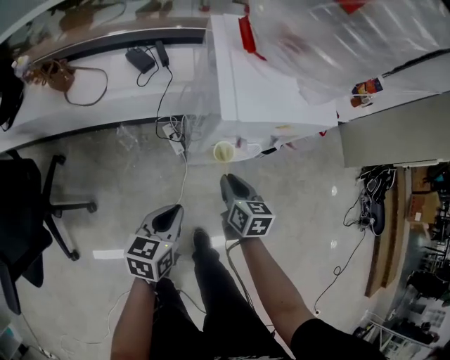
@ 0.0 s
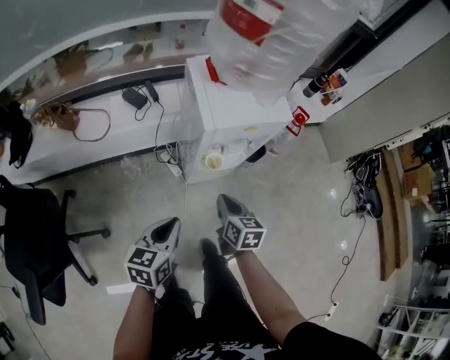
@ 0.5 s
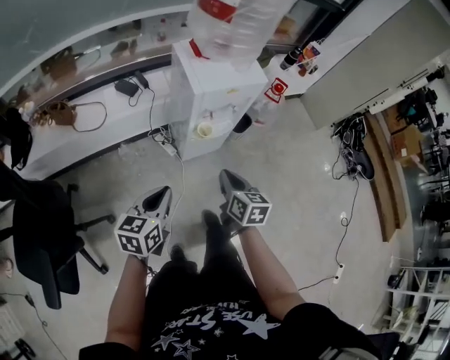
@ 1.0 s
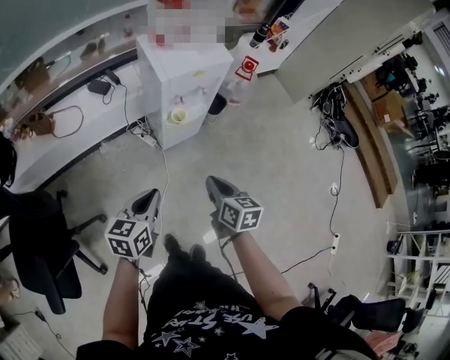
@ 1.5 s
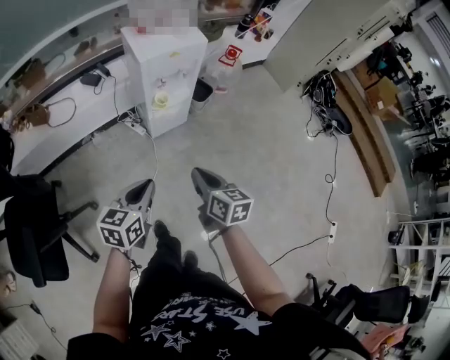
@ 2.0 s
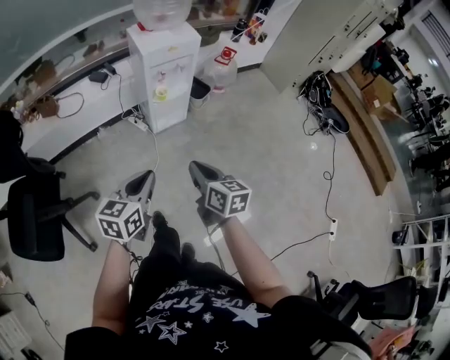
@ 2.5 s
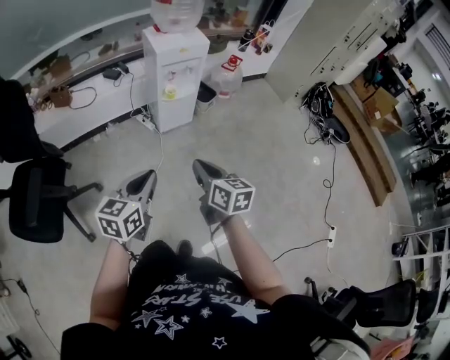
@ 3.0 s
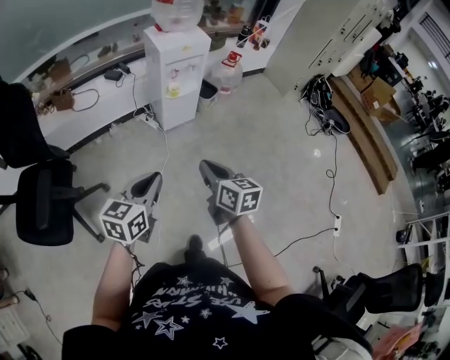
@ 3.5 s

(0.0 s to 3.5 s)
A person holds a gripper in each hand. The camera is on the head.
0.0 s - 2.0 s: The grippers both shift backward and upward by about 40 cm. The right gripper changes its angle by roughly 20 degrees. The left gripper changes its angle by about 20 degrees.
2.0 s - 3.5 s: The grippers both shift backward by some 25 cm.

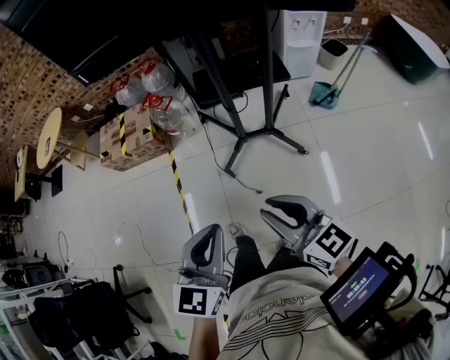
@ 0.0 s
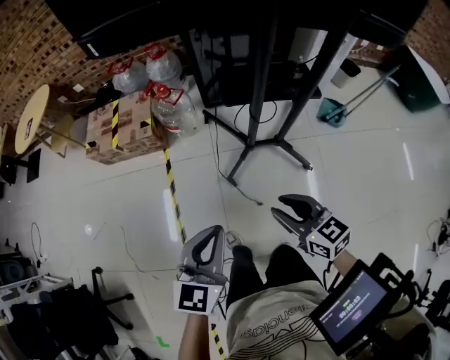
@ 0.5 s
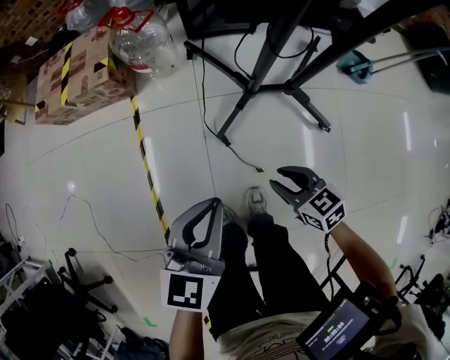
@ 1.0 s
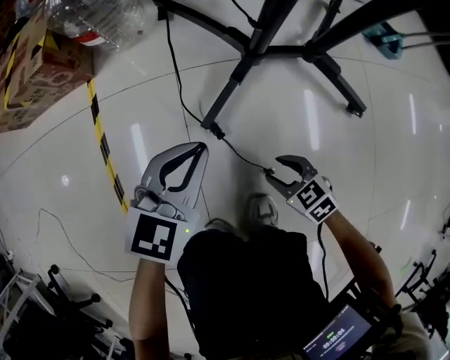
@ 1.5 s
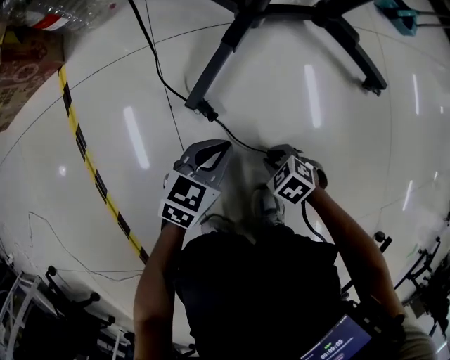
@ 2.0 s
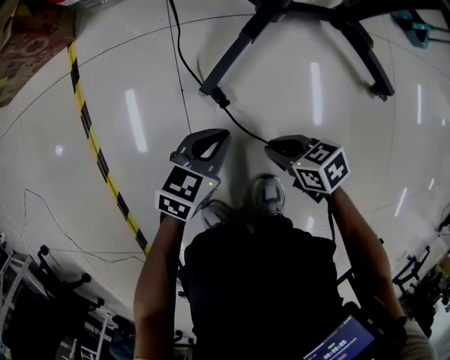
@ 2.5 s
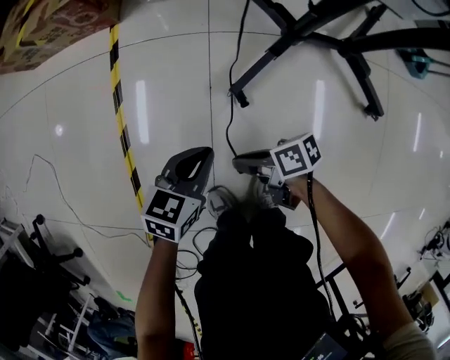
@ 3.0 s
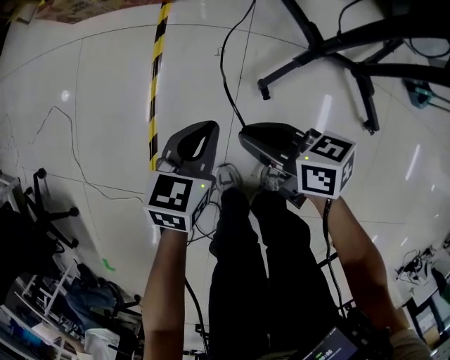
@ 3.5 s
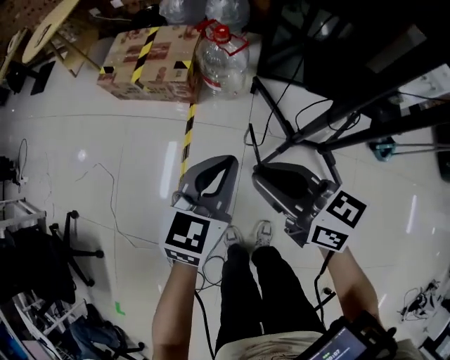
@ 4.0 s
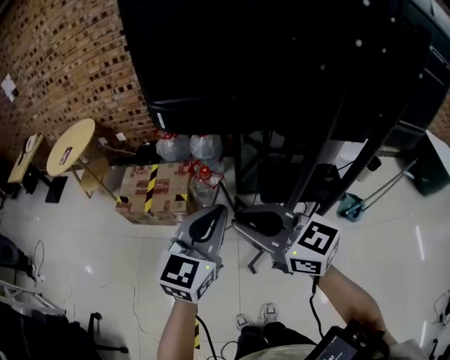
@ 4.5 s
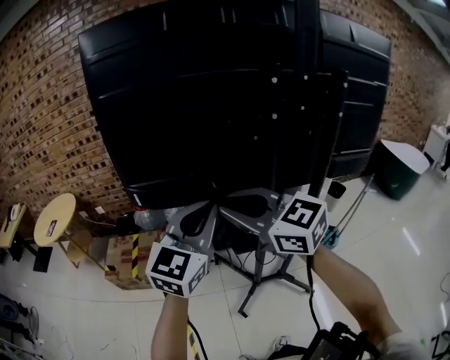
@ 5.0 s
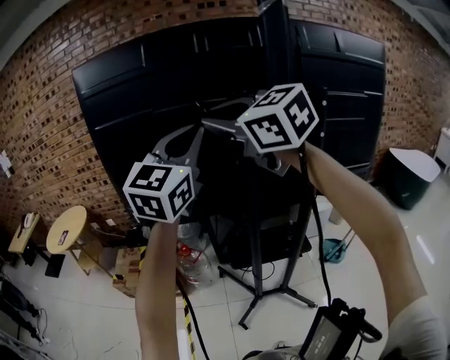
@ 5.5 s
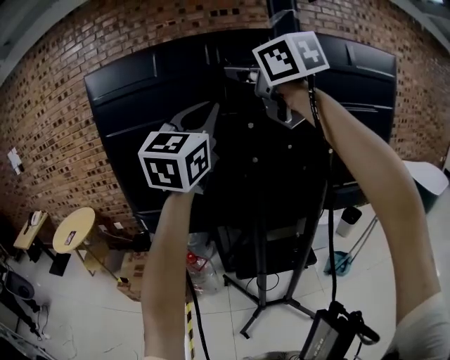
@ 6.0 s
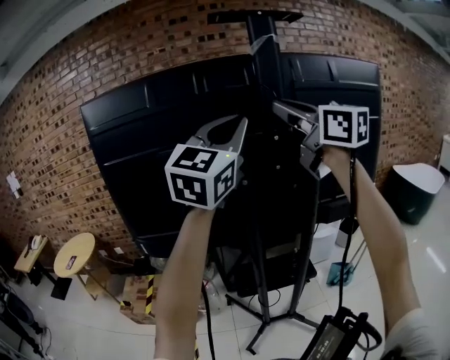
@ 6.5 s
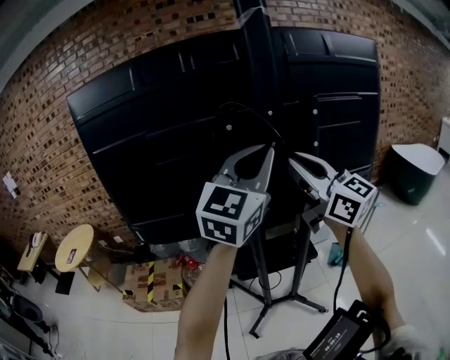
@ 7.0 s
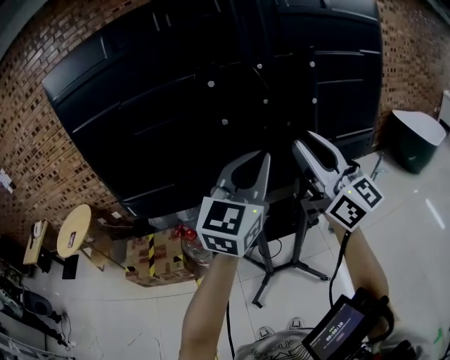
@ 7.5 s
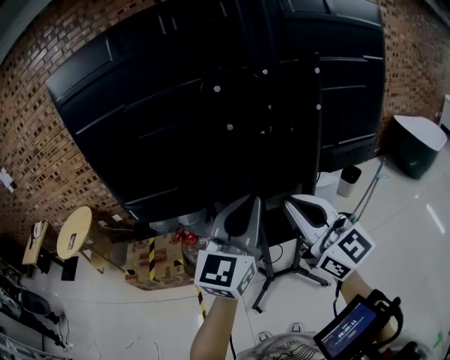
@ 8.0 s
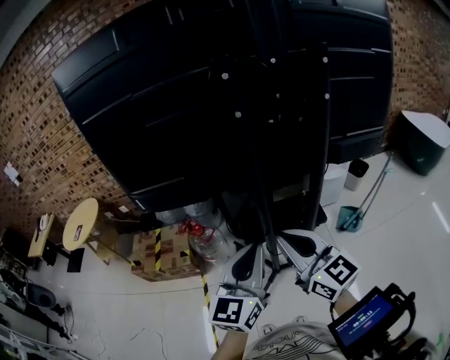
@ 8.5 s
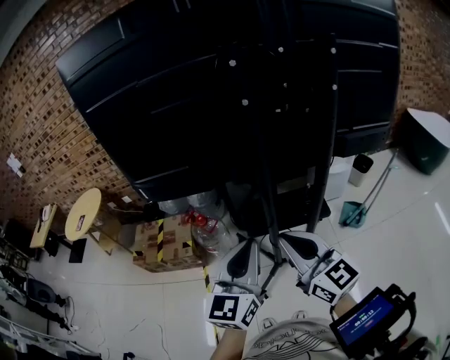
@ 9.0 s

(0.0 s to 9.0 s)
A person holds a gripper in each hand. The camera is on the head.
0.0 s - 2.0 s: Both grippers travel together downward, approximately 90 cm. The right gripper angles its fingers downward, by roughly 60 degrees, and opens, then closes once more. The left gripper changes its angle by roughly 40 degrees.
2.0 s - 4.5 s: Both grippers travel together upward, some 1 m. The left gripper angles its fingers upward, by some 30 degrees; the right gripper tips its fingers upward by some 70 degrees.
4.5 s - 7.0 s: The right gripper moves approximately 50 cm, and rotates some 40 degrees, while the left gripper shifts by approximately 50 cm, and turns by approximately 30 degrees.
7.0 s - 9.0 s: The left gripper moves downward and to the left, some 30 cm, and rotates about 30 degrees, while the right gripper shifts approximately 30 cm downward, backward and to the left.

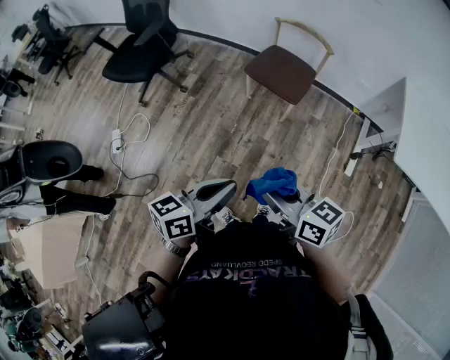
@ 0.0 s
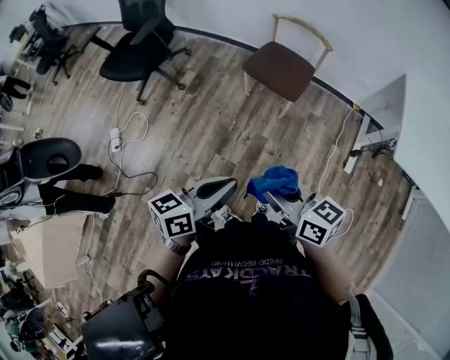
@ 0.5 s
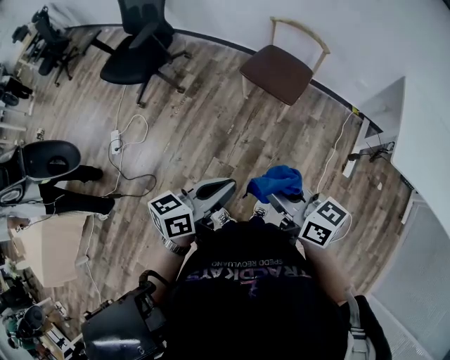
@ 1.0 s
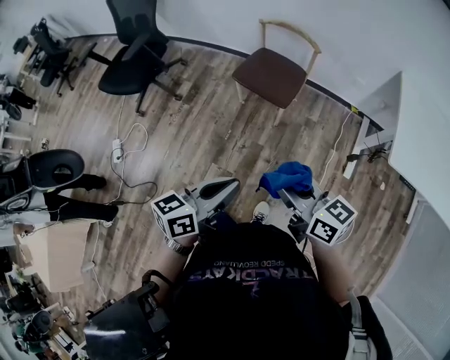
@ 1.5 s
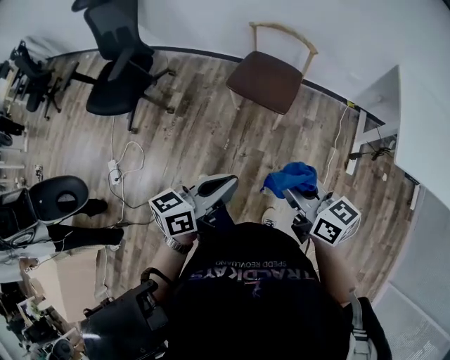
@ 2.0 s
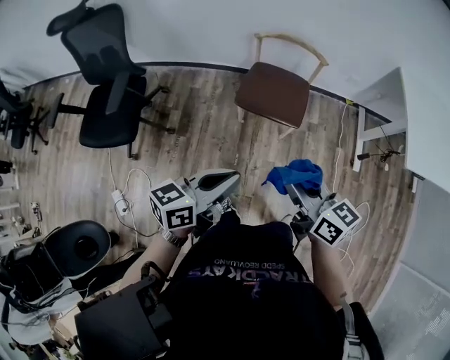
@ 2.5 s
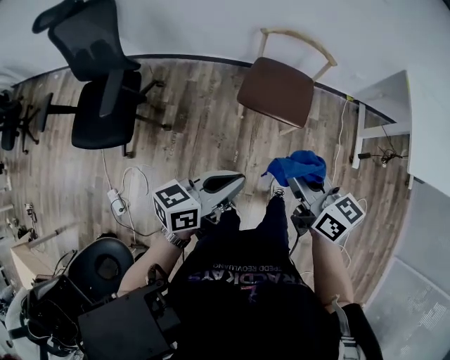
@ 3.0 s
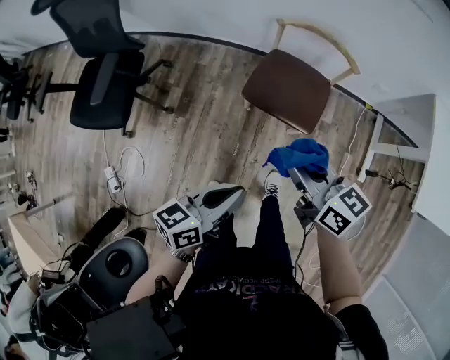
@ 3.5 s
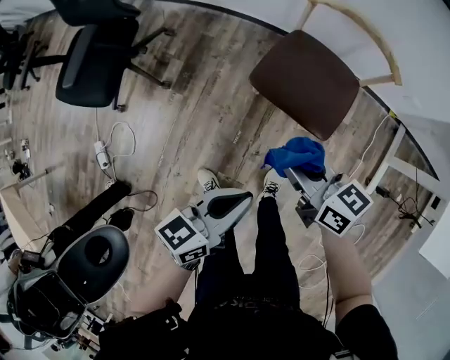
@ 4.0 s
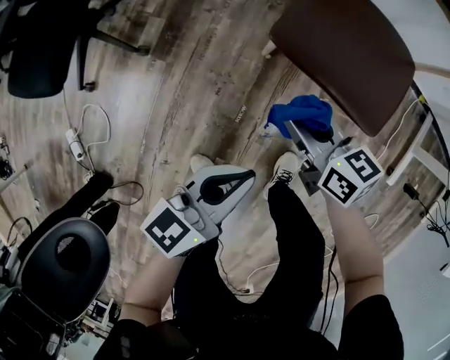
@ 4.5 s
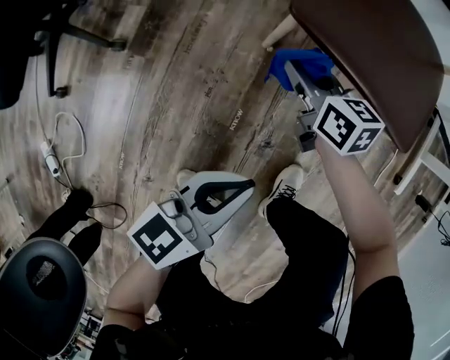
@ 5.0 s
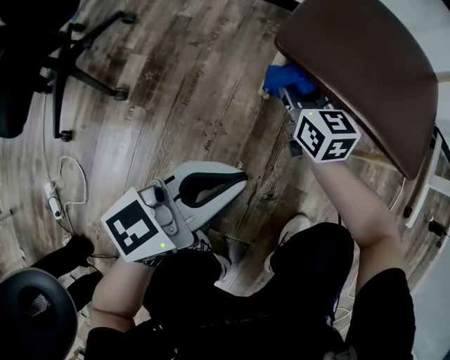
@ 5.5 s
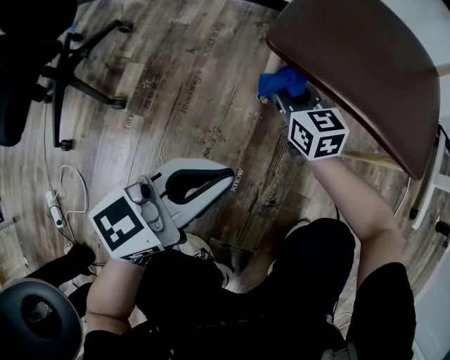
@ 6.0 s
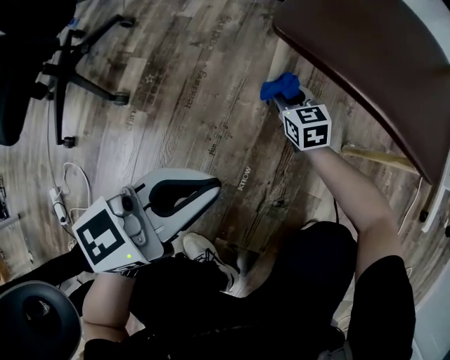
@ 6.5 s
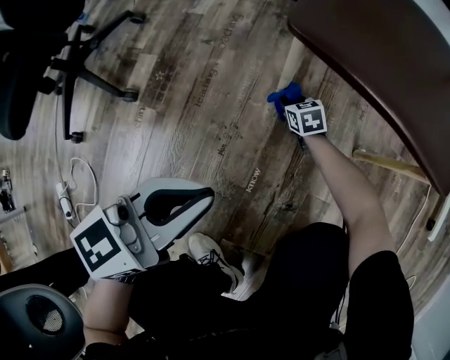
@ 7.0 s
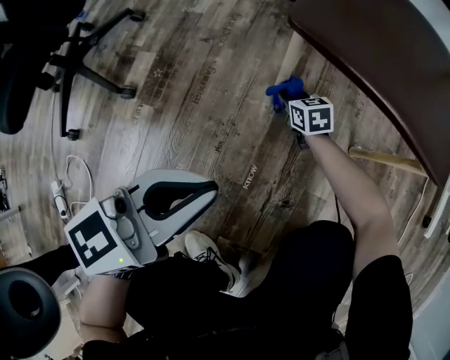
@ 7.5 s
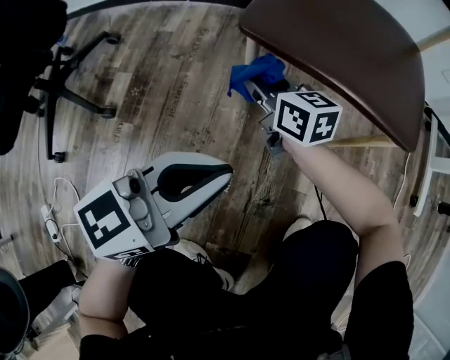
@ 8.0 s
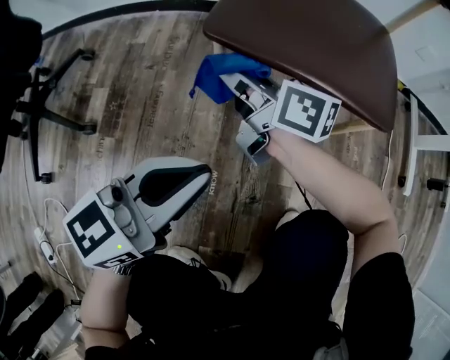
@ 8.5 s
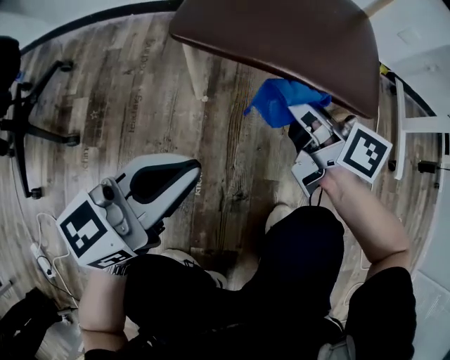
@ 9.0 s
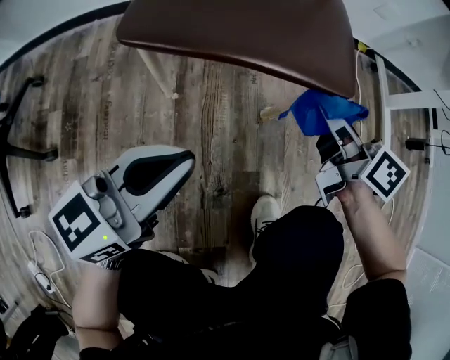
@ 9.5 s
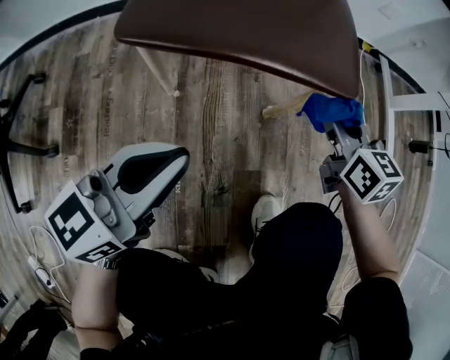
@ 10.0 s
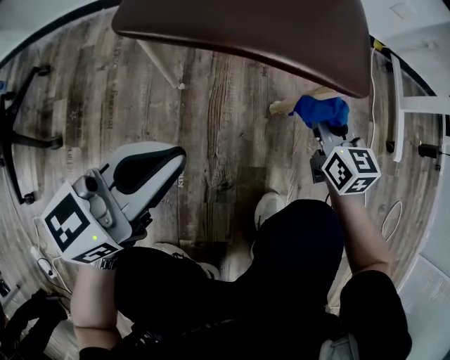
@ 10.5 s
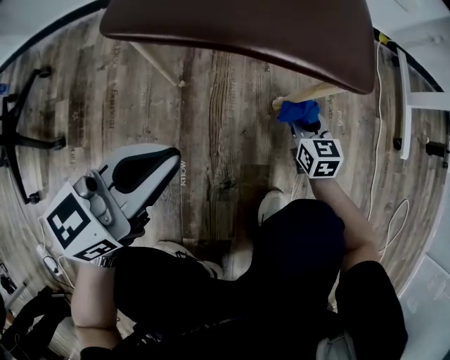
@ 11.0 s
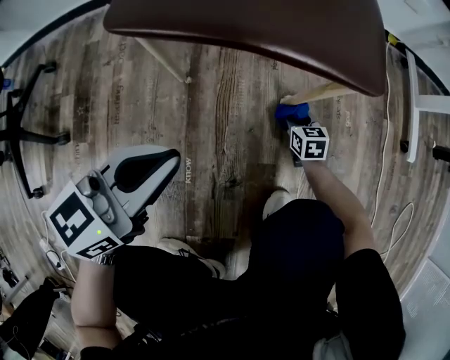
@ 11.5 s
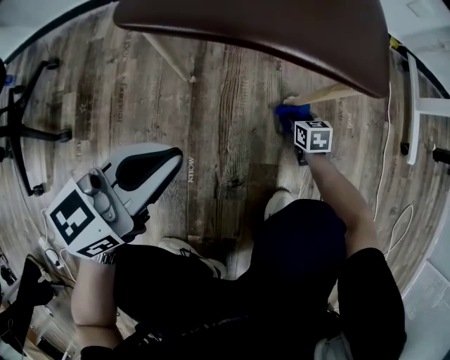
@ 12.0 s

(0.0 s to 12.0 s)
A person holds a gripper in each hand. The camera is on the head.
0.0 s - 2.0 s: The right gripper heads forward and to the right, covering roughly 15 cm. The left gripper is displaced forward by about 15 cm.
2.0 s - 4.0 s: Both grippers travel together forward, downward and to the left, approximately 40 cm.
4.0 s - 6.0 s: The two grippers go about 50 cm downward. The left gripper changes its angle by approximately 30 degrees. The right gripper swivels approximately 30 degrees.
6.0 s - 8.0 s: The right gripper reaches approximately 25 cm downward, then returns.
8.0 s - 10.0 s: The left gripper moves to the right, approximately 5 cm. Meanwhile the right gripper shifts some 35 cm to the right, and swivels roughly 30 degrees.
10.0 s - 12.0 s: The right gripper goes some 35 cm downward, and swivels roughly 30 degrees.

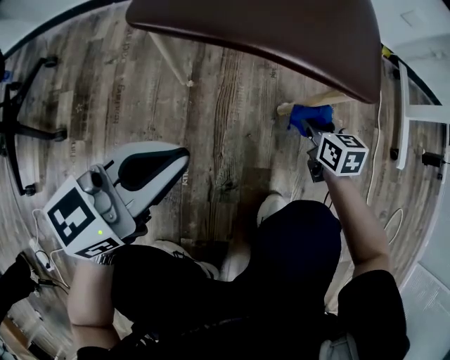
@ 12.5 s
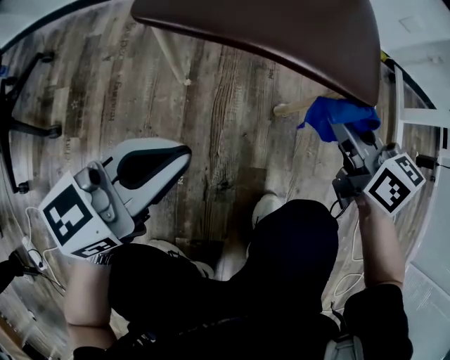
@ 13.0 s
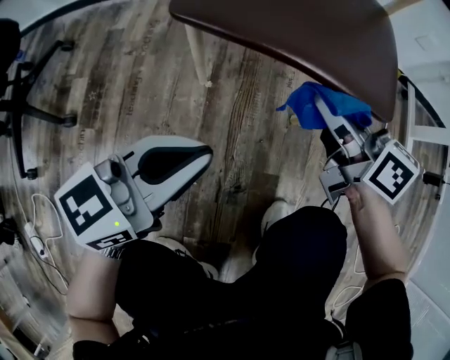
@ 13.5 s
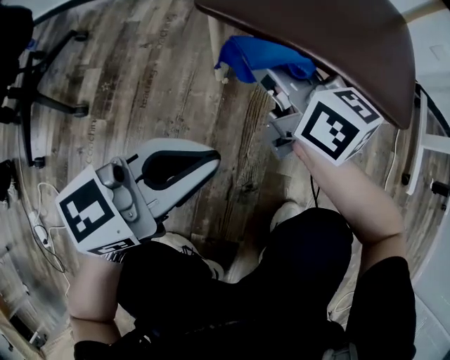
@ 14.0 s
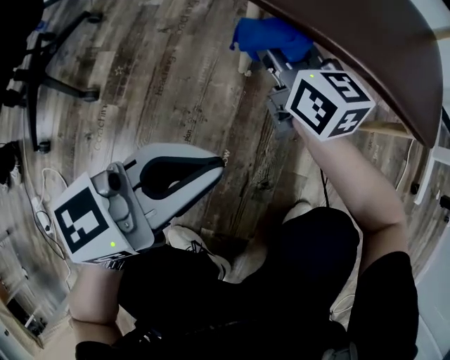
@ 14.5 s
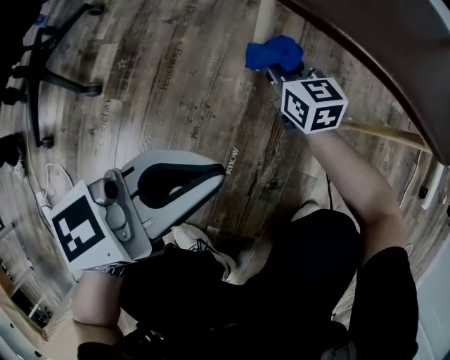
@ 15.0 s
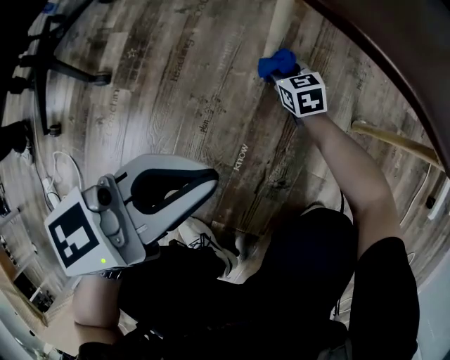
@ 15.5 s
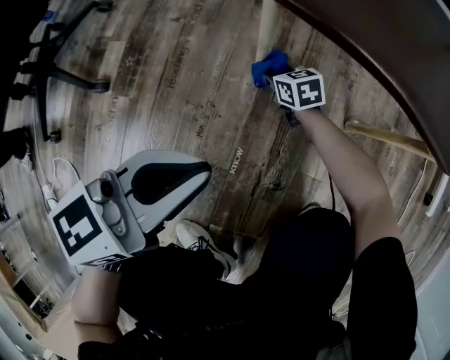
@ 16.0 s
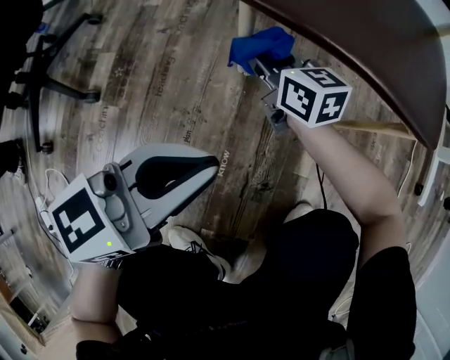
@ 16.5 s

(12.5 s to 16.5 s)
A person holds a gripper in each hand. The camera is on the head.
12.5 s - 14.5 s: The right gripper is displaced to the left and upward by some 35 cm, and angles its fingers upward, by approximately 30 degrees; the left gripper heads to the left, covering some 5 cm.
14.5 s - 16.5 s: The right gripper moves about 30 cm downward and comes back.
